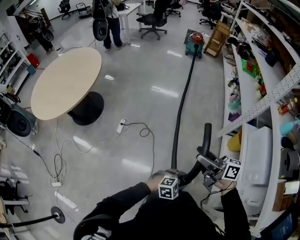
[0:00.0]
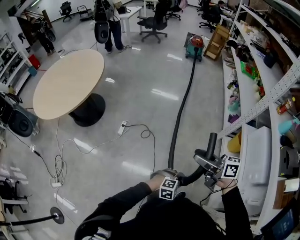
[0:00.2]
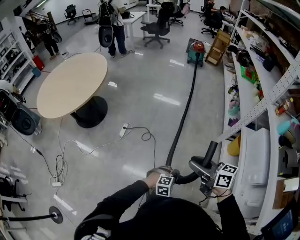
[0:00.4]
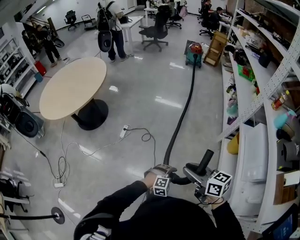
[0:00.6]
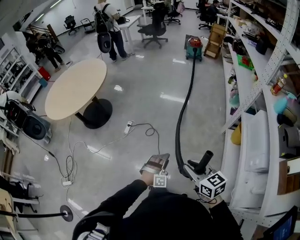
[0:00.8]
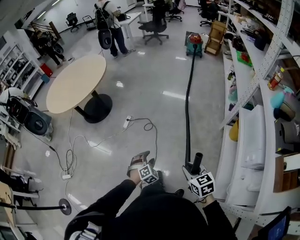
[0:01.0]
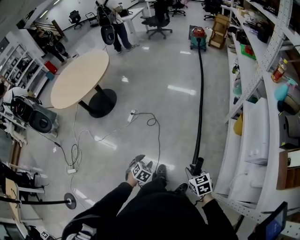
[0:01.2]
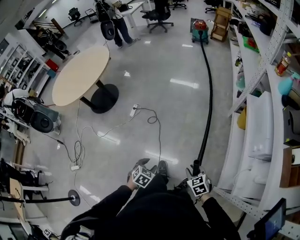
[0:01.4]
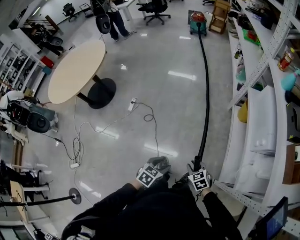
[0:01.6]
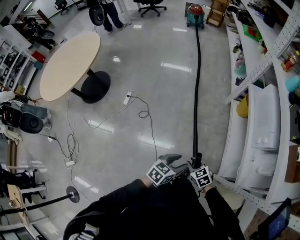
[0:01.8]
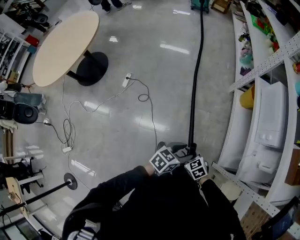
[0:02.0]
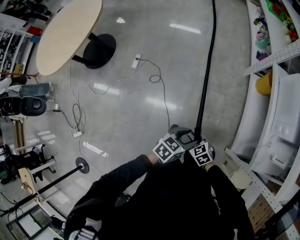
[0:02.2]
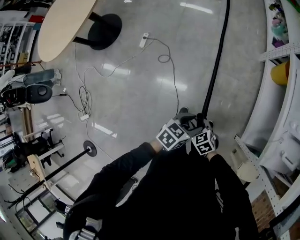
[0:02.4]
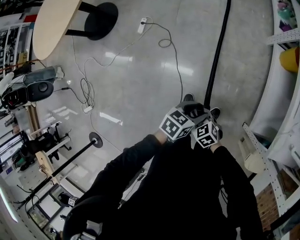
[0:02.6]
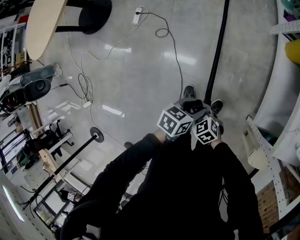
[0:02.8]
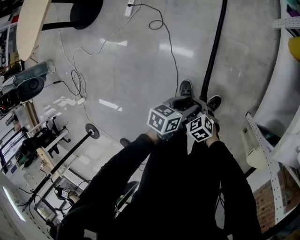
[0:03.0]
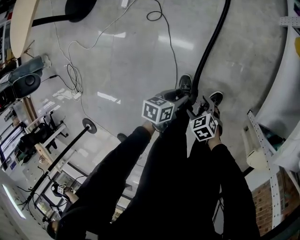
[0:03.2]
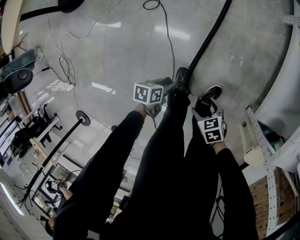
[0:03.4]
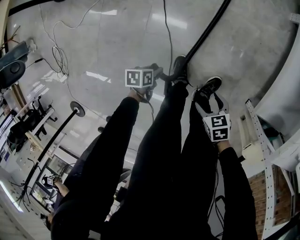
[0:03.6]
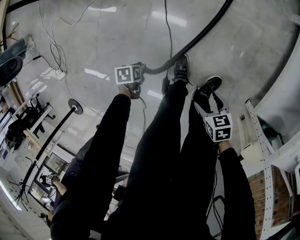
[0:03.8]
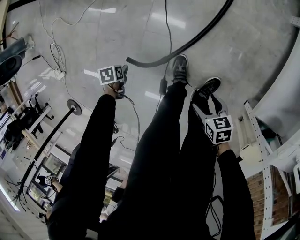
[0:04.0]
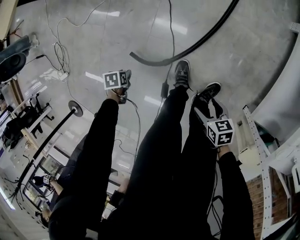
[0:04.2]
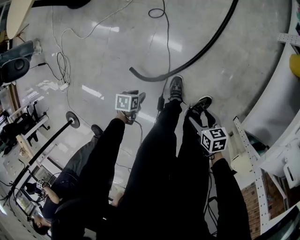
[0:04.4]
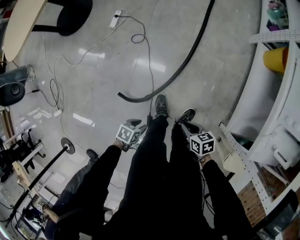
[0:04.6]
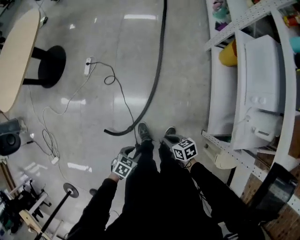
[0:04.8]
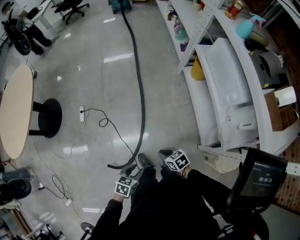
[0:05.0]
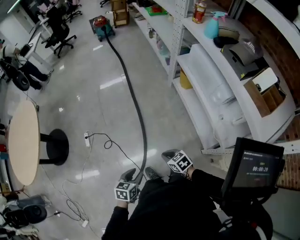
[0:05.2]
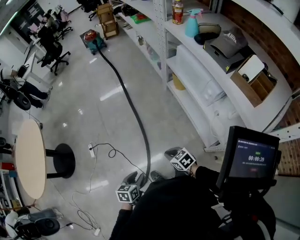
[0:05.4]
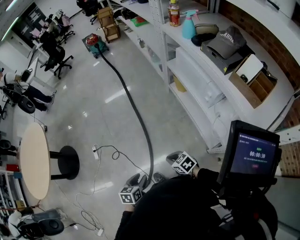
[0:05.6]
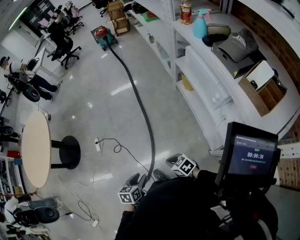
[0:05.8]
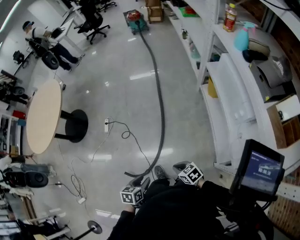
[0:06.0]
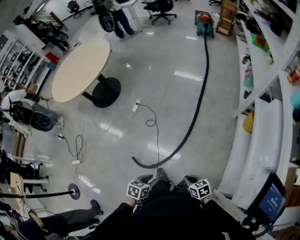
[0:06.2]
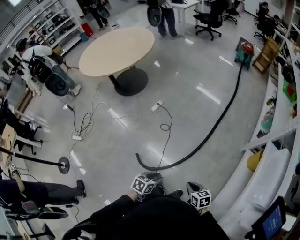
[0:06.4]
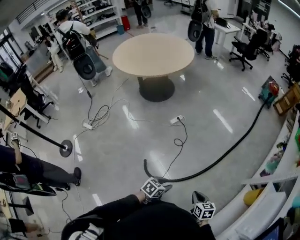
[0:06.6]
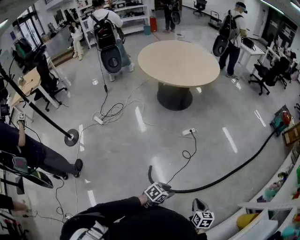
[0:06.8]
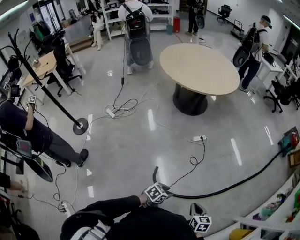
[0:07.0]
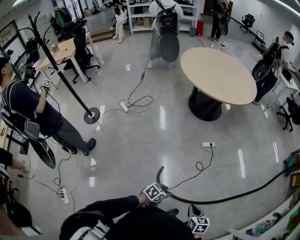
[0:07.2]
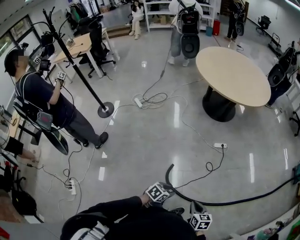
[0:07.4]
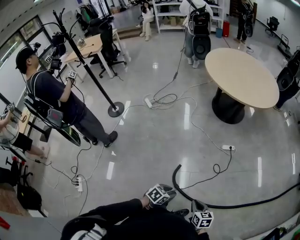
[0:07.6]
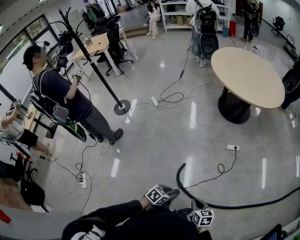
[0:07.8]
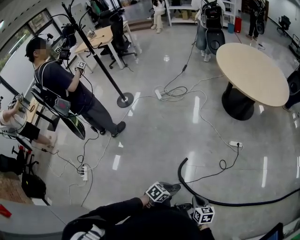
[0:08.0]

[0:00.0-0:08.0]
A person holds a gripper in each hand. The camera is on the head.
0:00.0 to 0:01.6: The right gripper ends up some 40 cm from where it was, angles its fingers downward, by approximately 50 degrees, and closes its fingers. Meanwhile the left gripper shifts by about 15 cm, and rotates around the line of its fingers by roughly 50 degrees, counterclockwise from behind.
0:01.6 to 0:03.2: The two grippers go roughly 35 cm downward. The left gripper turns by approximately 40 degrees. Meanwhile the right gripper swivels about 20 degrees, and opens up.
0:03.2 to 0:04.8: Both grippers travel together upward, approximately 15 cm. The right gripper swivels about 30 degrees, and closes up. Meanwhile the left gripper turns by roughly 40 degrees.
0:04.8 to 0:06.4: The two grippers go roughly 15 cm upward. The right gripper turns by some 30 degrees, while the left gripper swivels roughly 40 degrees.
0:06.4 to 0:08.0: The right gripper moves roughly 30 cm, and rotates some 50 degrees. Meanwhile the left gripper ends up approximately 20 cm from where it was, and turns by some 40 degrees.

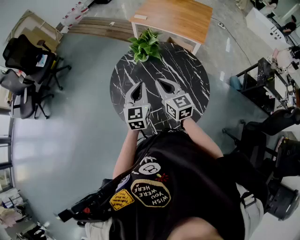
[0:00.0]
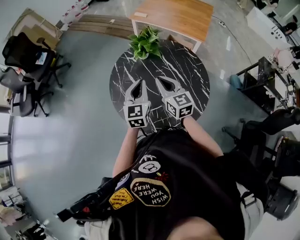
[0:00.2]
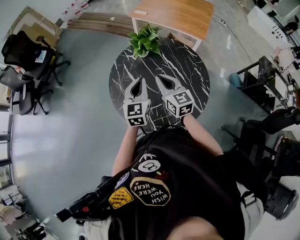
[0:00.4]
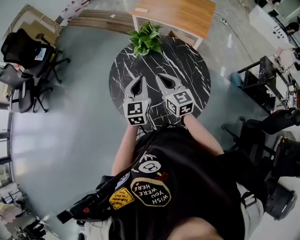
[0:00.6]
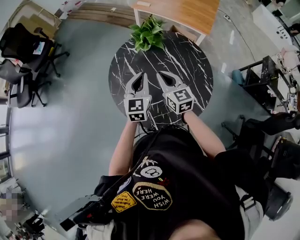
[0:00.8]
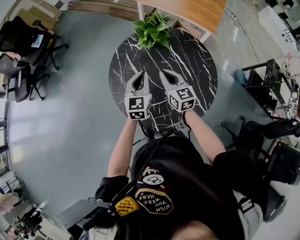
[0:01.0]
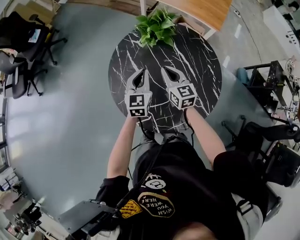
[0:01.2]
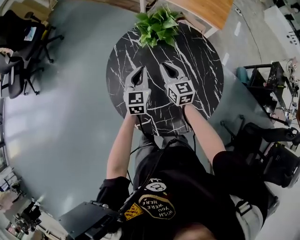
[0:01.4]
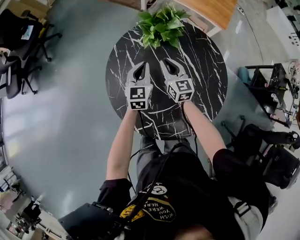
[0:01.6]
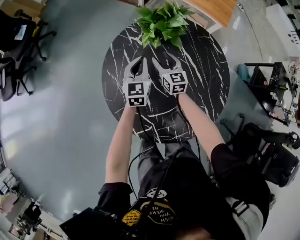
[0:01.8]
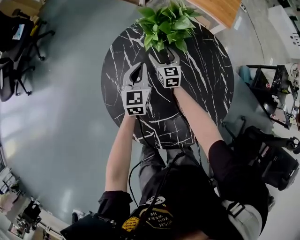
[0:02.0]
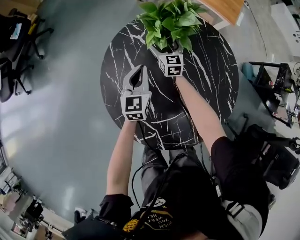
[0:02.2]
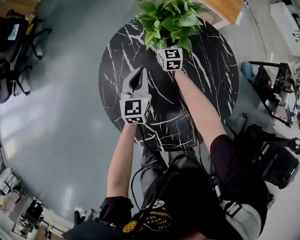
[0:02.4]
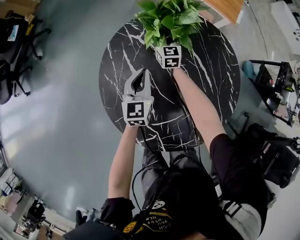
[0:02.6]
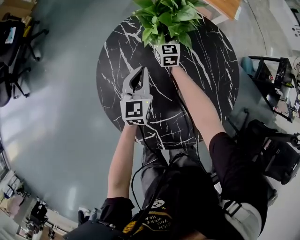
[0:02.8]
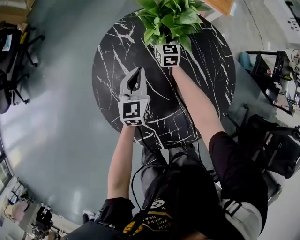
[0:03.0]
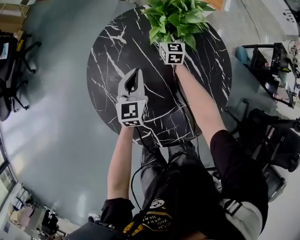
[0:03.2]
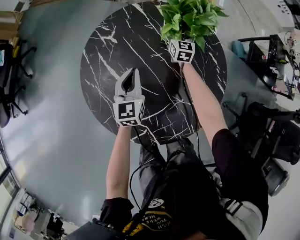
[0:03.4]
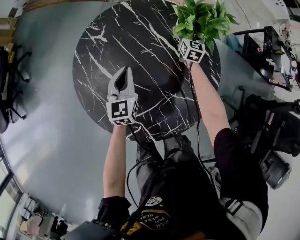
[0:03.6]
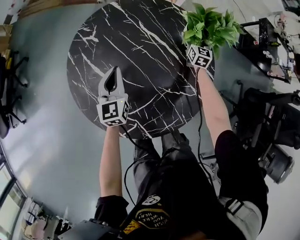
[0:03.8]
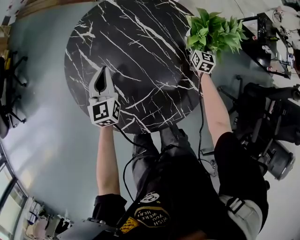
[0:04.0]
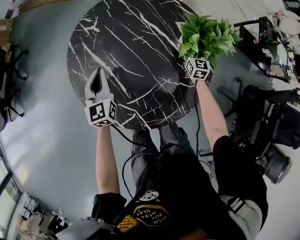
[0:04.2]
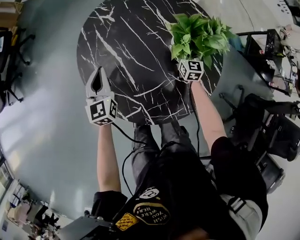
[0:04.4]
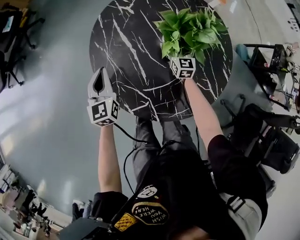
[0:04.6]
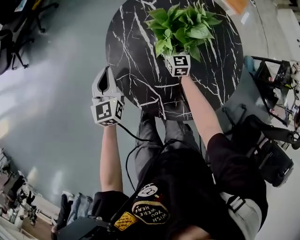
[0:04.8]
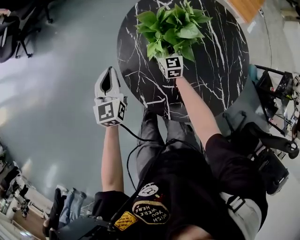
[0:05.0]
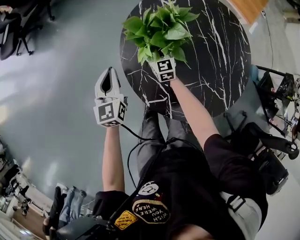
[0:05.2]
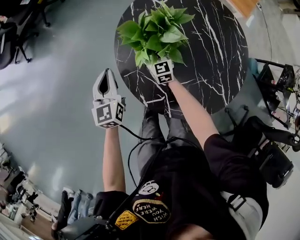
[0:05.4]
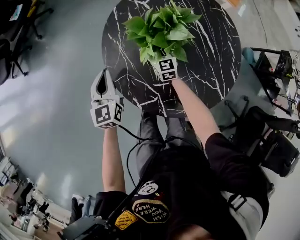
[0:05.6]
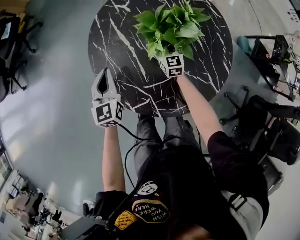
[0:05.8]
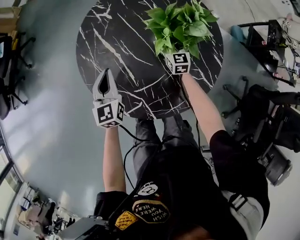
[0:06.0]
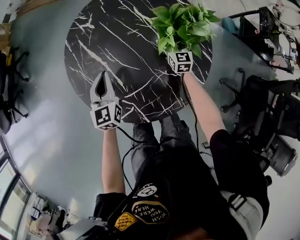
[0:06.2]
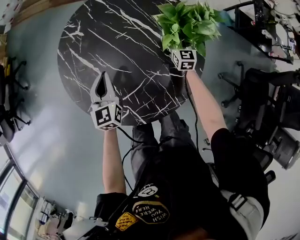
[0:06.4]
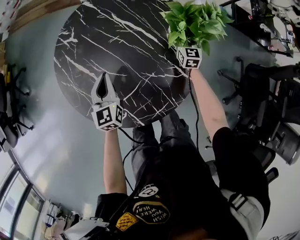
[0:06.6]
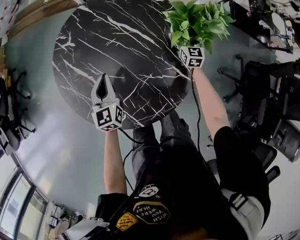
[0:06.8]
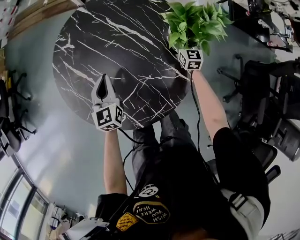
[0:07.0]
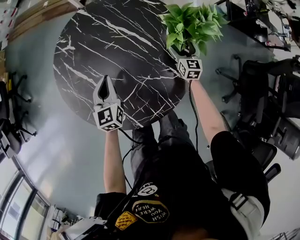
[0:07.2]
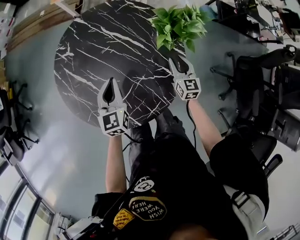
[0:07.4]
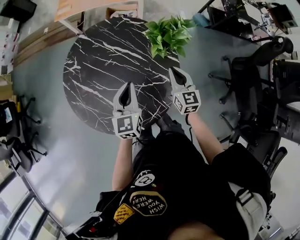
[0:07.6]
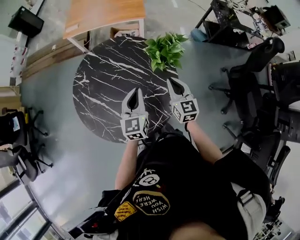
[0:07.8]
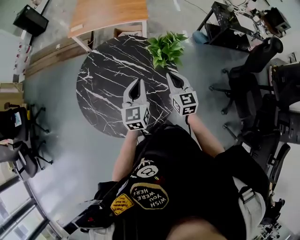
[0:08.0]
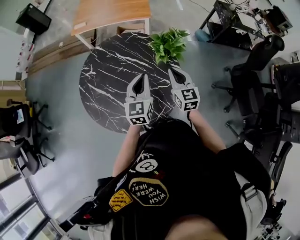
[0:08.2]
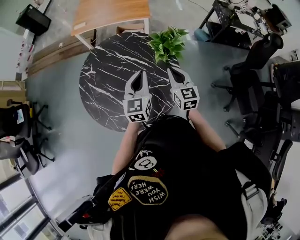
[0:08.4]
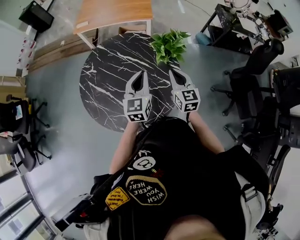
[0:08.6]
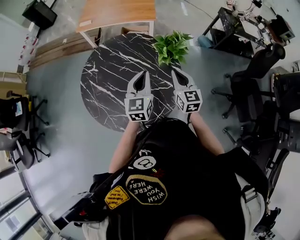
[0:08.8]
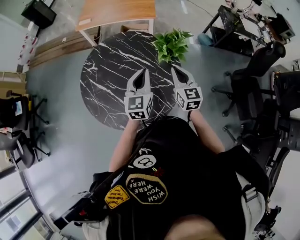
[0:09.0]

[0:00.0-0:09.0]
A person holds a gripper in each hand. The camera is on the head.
0:00.0 to 0:01.6: The grippers both shift downward and forward by about 25 cm.
0:01.6 to 0:03.0: The left gripper moves downward, approximately 5 cm. Meanwhile the right gripper heads forward and downward, covering roughly 25 cm, and opens up.
0:03.0 to 0:04.4: The right gripper shifts some 30 cm to the right and backward. Meanwhile the left gripper goes approximately 15 cm backward and to the left.
0:06.0 to 0:07.6: The left gripper shifts some 30 cm to the right and upward, and turns by about 30 degrees. The right gripper shifts roughly 35 cm to the right, upward and backward, turns by approximately 20 degrees, and closes its fingers.
0:07.6 to 0:09.0: The grippers both shift upward by approximately 10 cm.

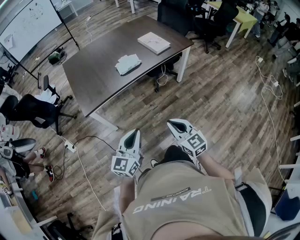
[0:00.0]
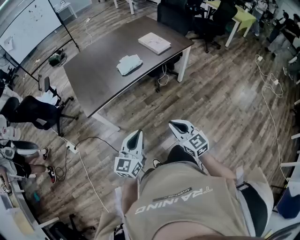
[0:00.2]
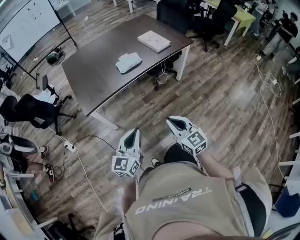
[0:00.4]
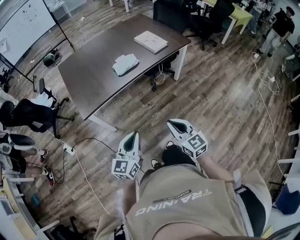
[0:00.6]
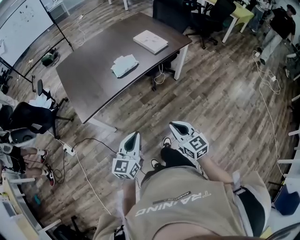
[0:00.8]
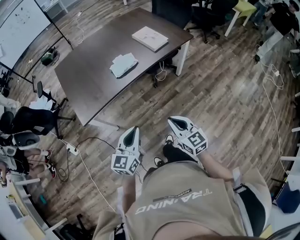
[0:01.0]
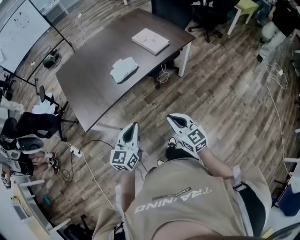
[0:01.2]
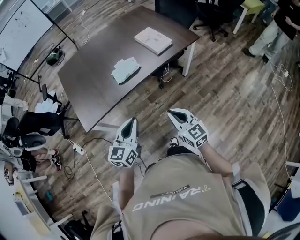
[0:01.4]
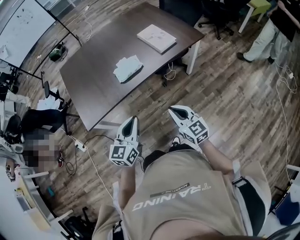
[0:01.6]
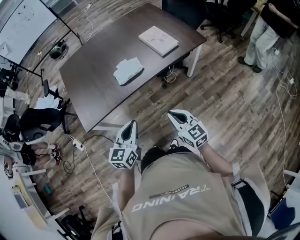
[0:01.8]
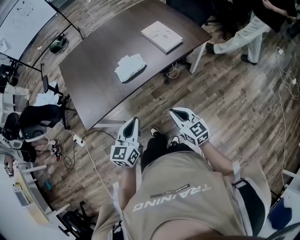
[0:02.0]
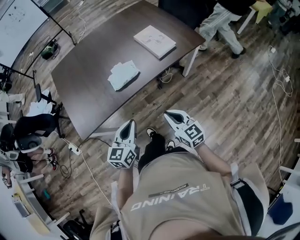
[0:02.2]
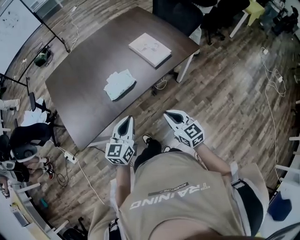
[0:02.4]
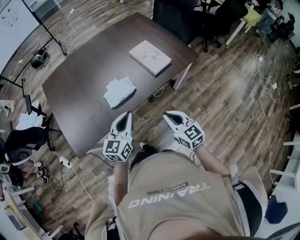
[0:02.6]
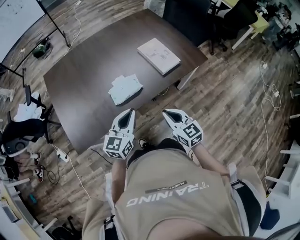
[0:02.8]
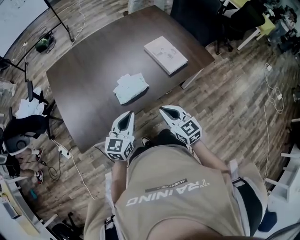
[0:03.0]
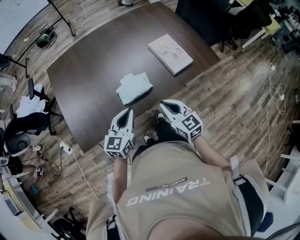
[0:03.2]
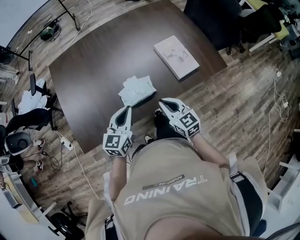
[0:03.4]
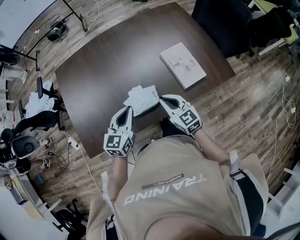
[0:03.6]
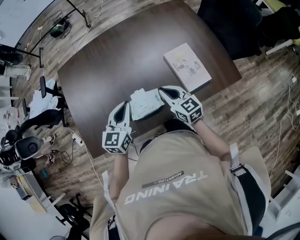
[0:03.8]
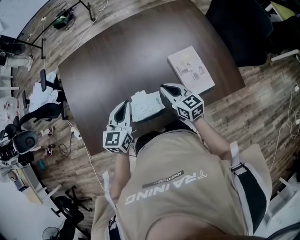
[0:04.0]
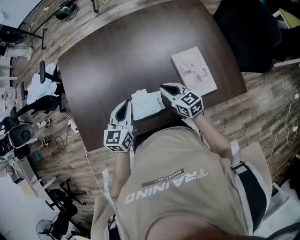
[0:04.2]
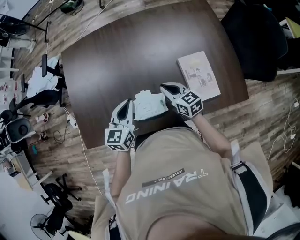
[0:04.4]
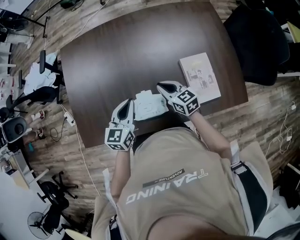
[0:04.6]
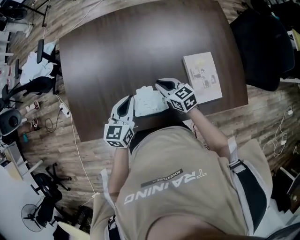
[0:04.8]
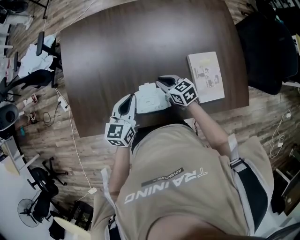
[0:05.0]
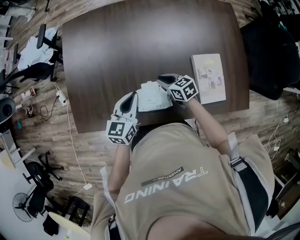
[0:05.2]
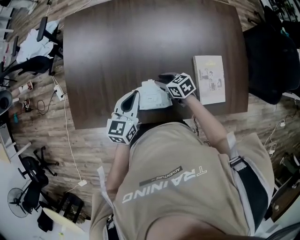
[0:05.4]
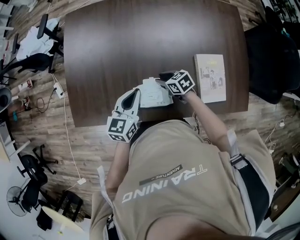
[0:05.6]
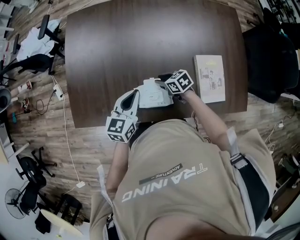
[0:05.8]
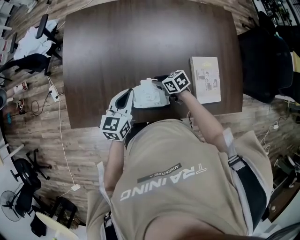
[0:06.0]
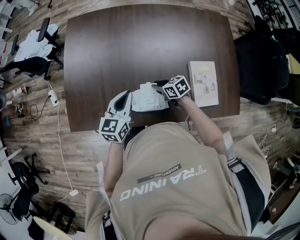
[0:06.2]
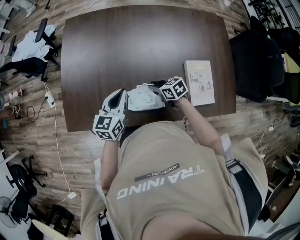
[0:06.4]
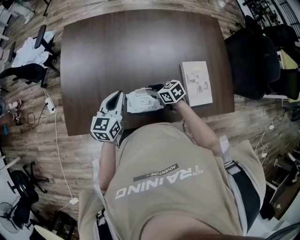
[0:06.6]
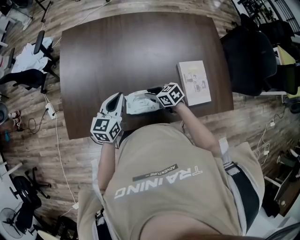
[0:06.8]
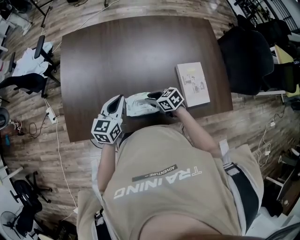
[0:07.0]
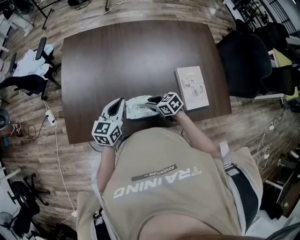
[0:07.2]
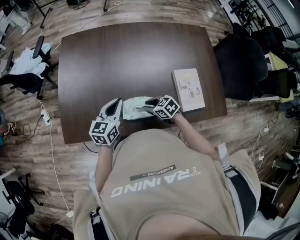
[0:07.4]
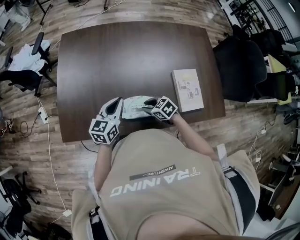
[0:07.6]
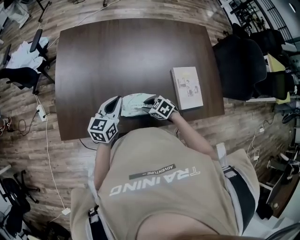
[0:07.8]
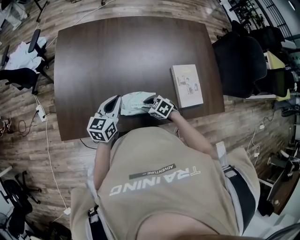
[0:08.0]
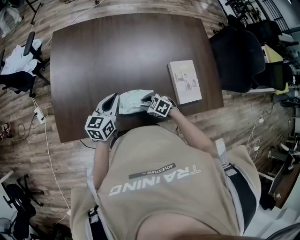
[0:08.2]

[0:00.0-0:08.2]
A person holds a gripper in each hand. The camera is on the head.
0:00.0 to 0:01.6: Both grippers move forward, some 20 cm.
0:01.6 to 0:03.2: Both grippers move forward, some 30 cm.
0:03.2 to 0:05.0: The right gripper moves some 30 cm, and rotates approximately 40 degrees. The left gripper ends up some 20 cm from where it was, and turns by approximately 30 degrees.
0:05.0 to 0:06.6: Both grippers move to the left, roughly 5 cm.
0:06.6 to 0:08.2: The right gripper is displaced backward by roughly 10 cm, and swivels some 30 degrees.
